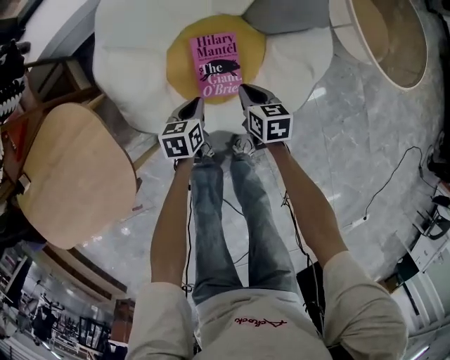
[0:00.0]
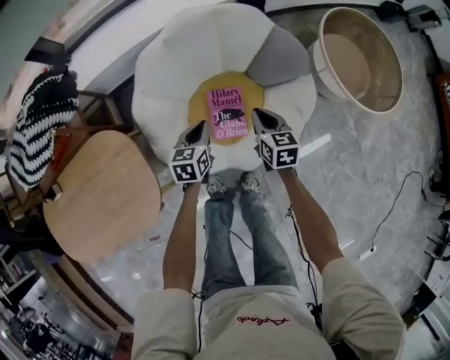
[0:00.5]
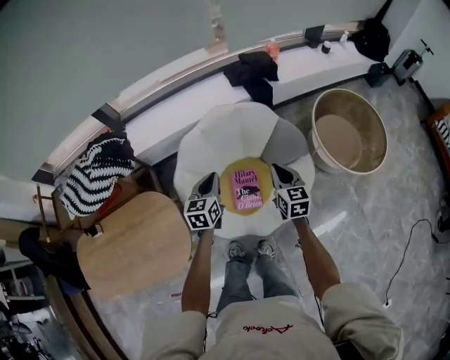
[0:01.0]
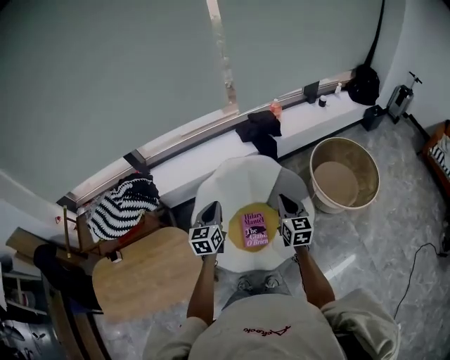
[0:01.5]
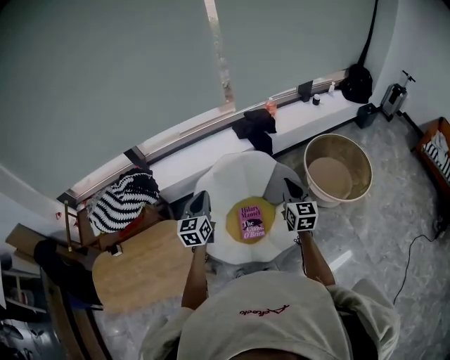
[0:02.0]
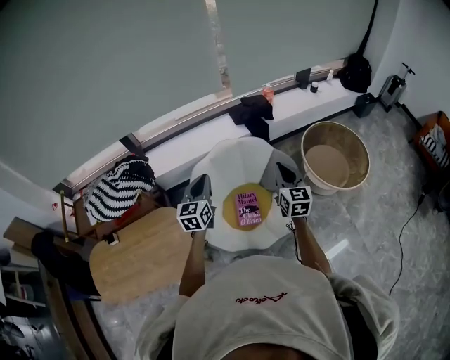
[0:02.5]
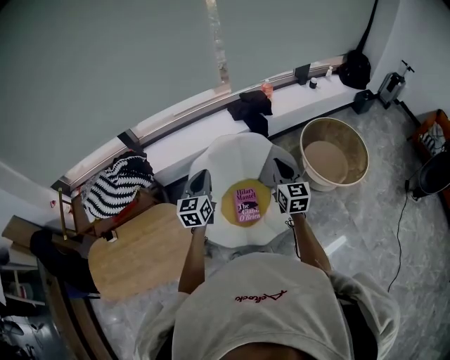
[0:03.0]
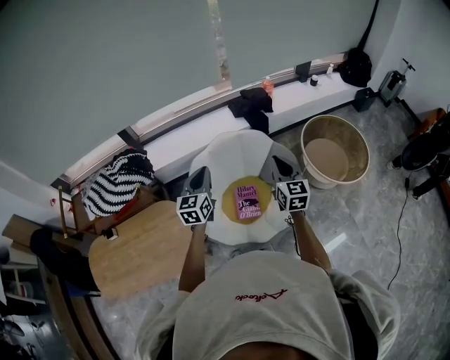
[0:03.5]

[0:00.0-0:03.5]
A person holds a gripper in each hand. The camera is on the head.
0:00.0 to 0:02.0: The two grippers go approximately 60 cm upward. The left gripper tilts its fingers roughly 40 degrees upward; the right gripper points its fingers some 40 degrees further upward.
0:02.0 to 0:03.5: The grippers make only small movements.

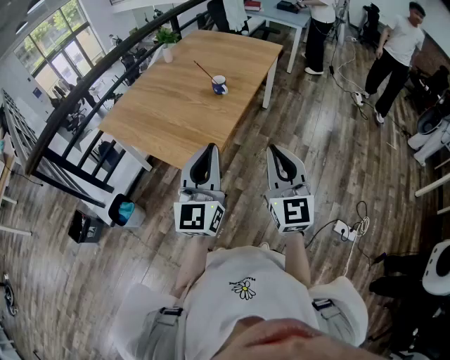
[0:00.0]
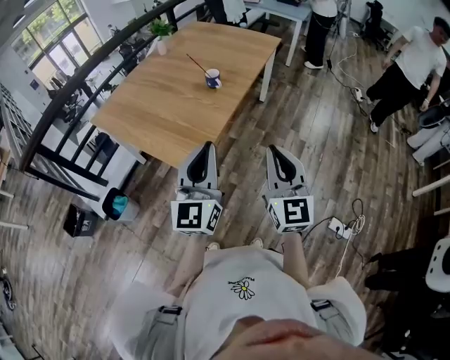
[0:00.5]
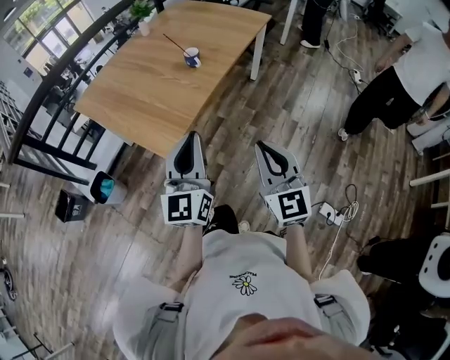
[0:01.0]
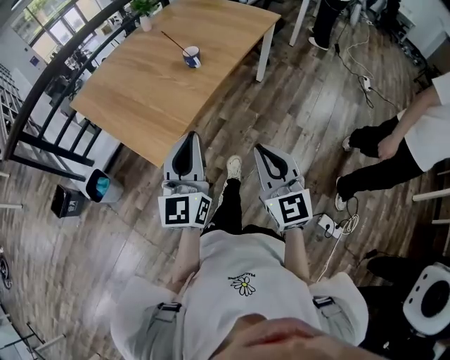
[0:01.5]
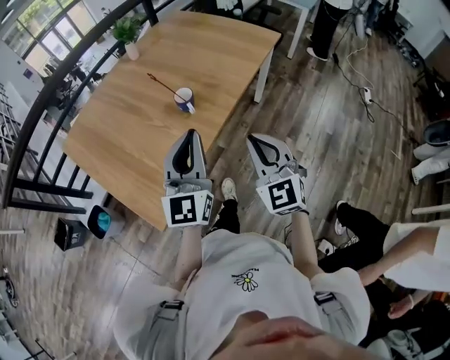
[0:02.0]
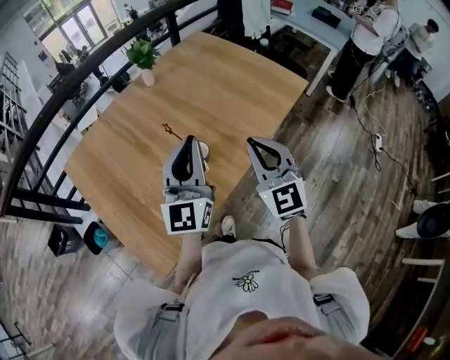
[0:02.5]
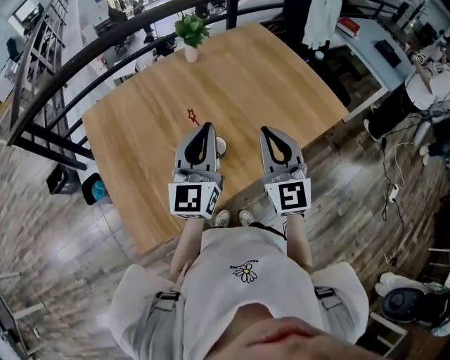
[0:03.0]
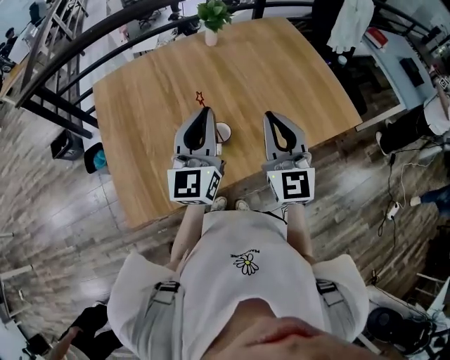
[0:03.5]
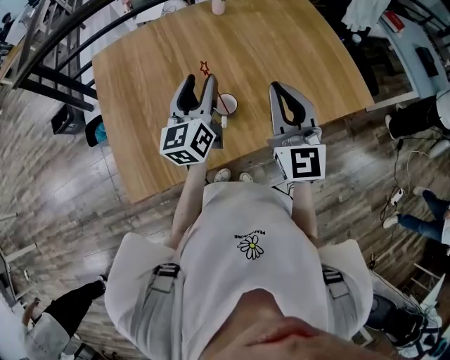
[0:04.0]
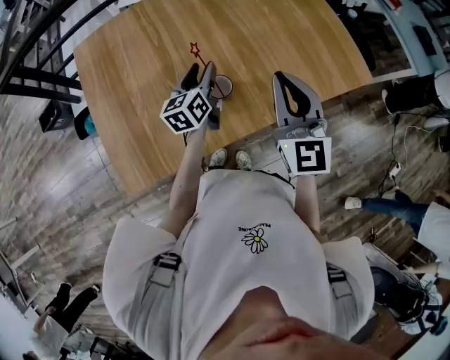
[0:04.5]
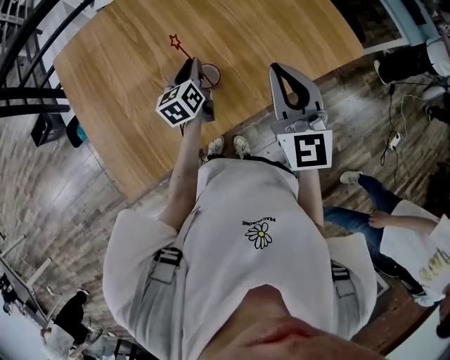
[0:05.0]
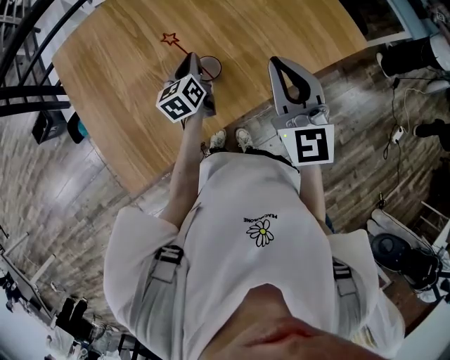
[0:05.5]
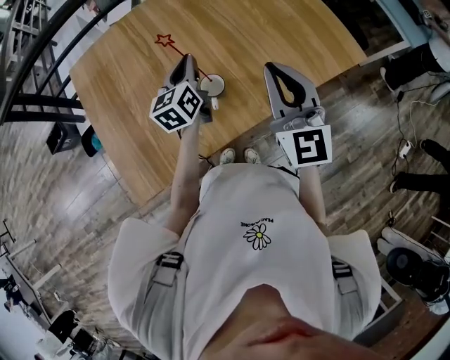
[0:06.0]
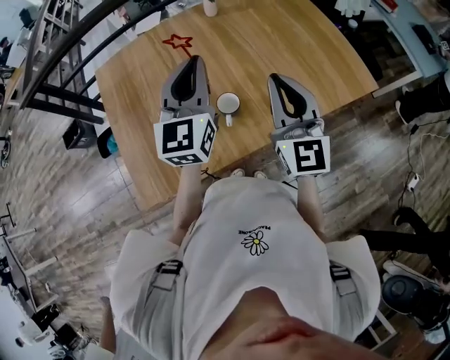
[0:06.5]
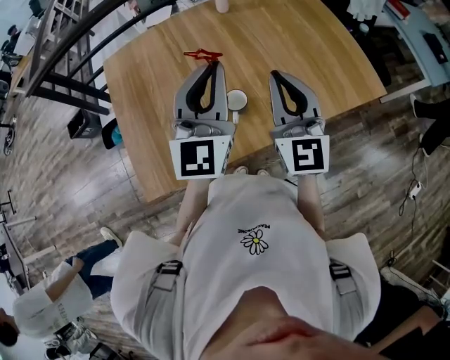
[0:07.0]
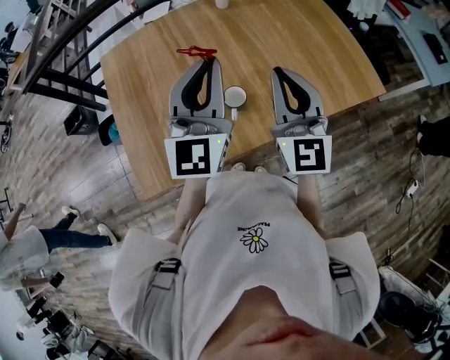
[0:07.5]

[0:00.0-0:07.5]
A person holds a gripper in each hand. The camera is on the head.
0:00.0 to 0:02.0: The grippers both shift forward and to the right by some 30 cm. The right gripper changes its angle by approximately 30 degrees.
0:02.0 to 0:04.0: The left gripper ends up approximately 25 cm from where it was, rotates about 40 degrees, and opens; the right gripper ends up approximately 30 cm from where it was, and swivels some 30 degrees.
0:04.0 to 0:05.5: The left gripper shifts some 20 cm downward, swivels some 20 degrees, and closes.
0:05.5 to 0:07.5: The left gripper travels upward by some 30 cm, and tips its fingers upward by approximately 30 degrees; the right gripper goes about 5 cm upward.

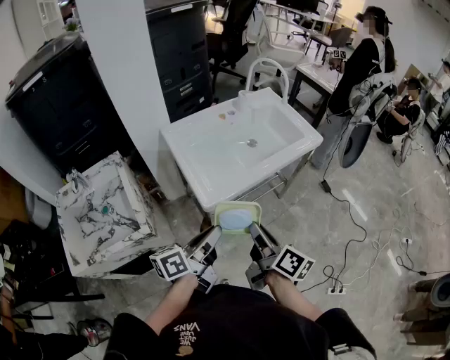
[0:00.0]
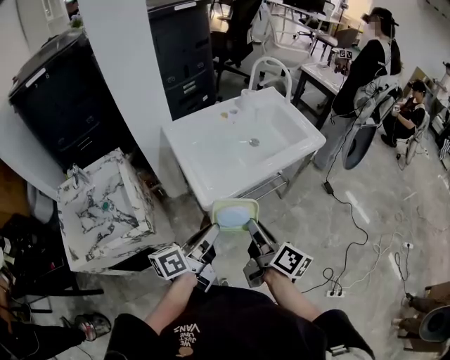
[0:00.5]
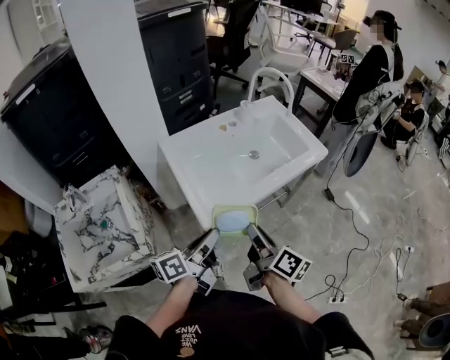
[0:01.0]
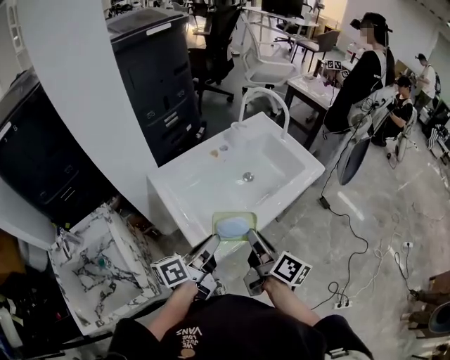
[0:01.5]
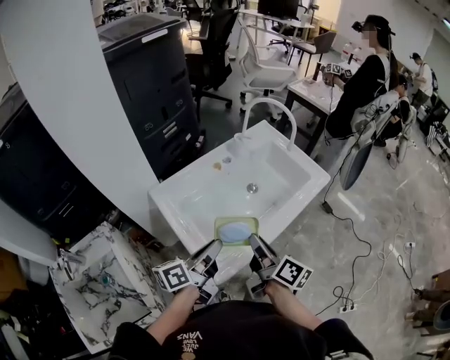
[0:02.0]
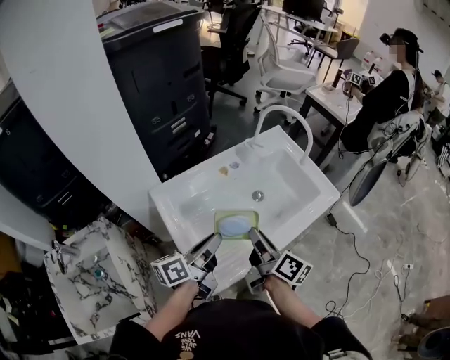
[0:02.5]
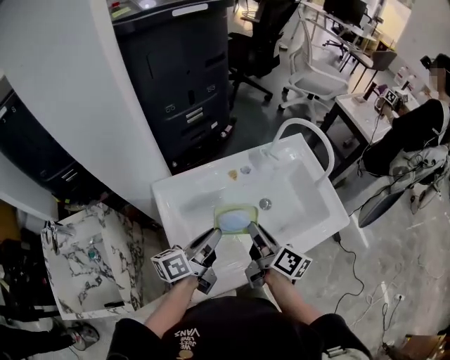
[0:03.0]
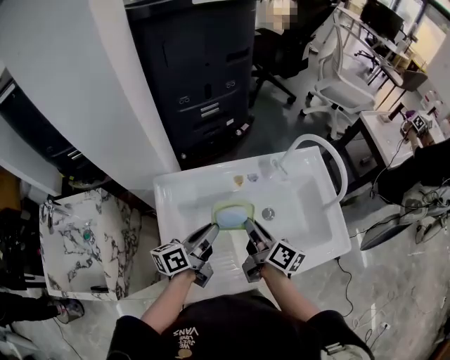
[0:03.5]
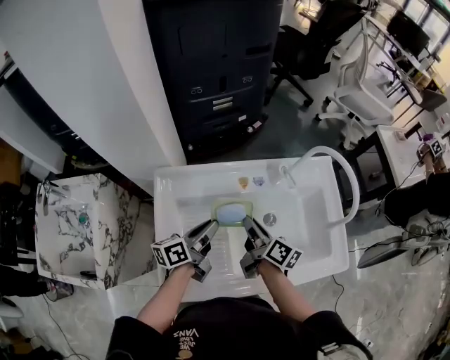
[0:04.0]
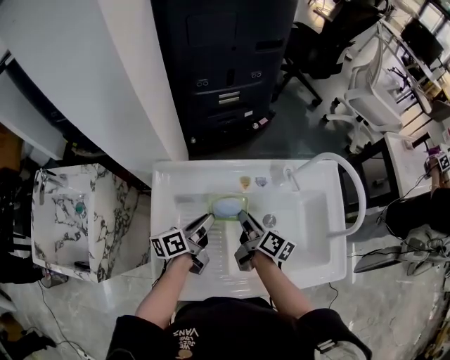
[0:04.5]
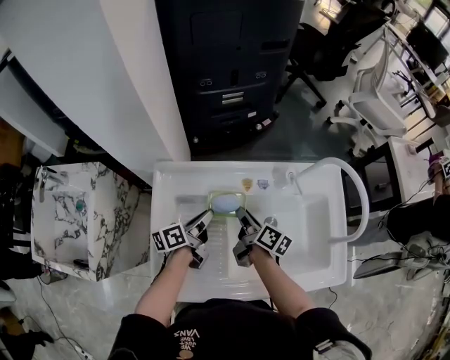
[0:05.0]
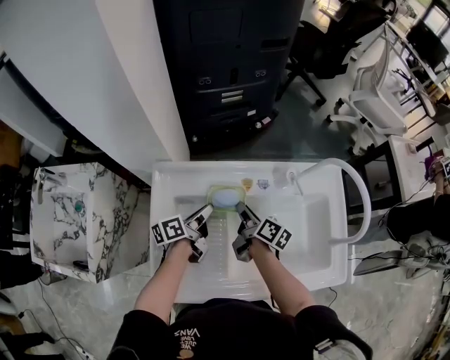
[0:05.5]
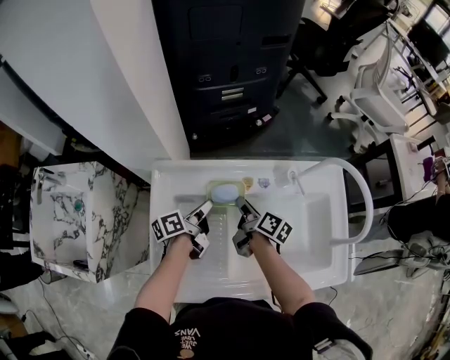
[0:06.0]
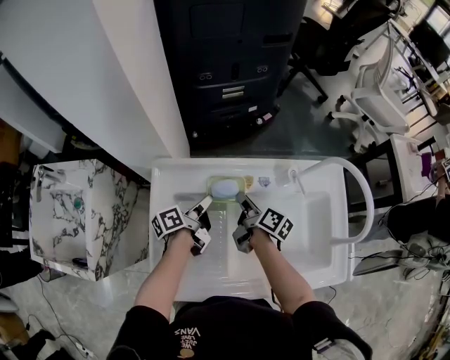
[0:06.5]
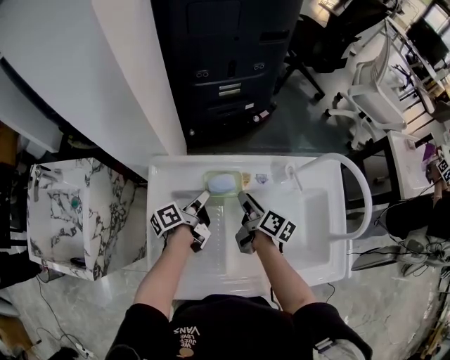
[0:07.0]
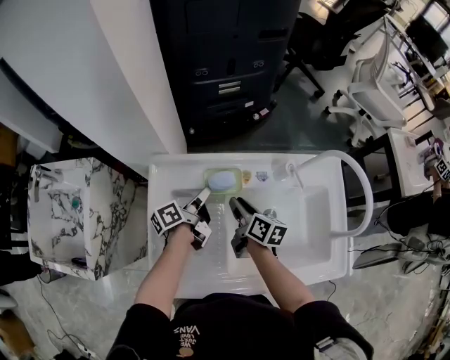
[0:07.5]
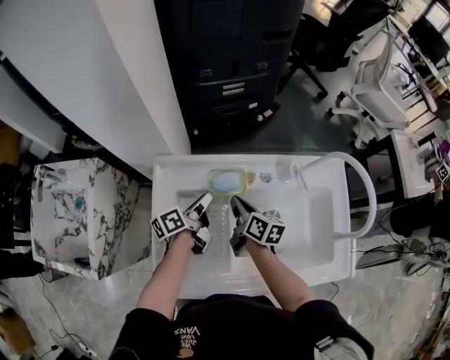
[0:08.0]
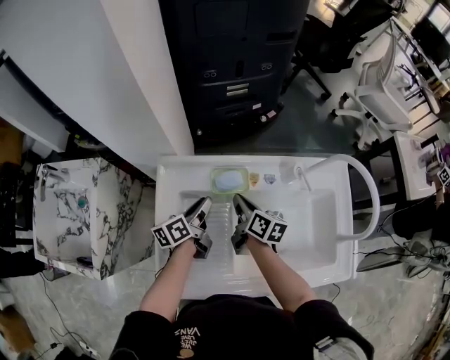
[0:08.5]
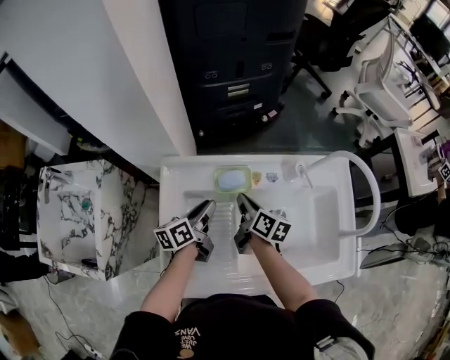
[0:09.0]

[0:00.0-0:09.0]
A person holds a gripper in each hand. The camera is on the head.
0:00.0 to 0:02.0: The two grippers go approximately 20 cm forward.
0:02.0 to 0:04.5: The right gripper shifts by some 30 cm, and turns by roughly 40 degrees. Meanwhile the left gripper shifts by roughly 25 cm, and turns by some 40 degrees.
0:04.5 to 0:07.0: The two grippers go roughly 5 cm forward.
0:07.0 to 0:09.0: The right gripper closes; the left gripper swivels approximately 20 degrees.

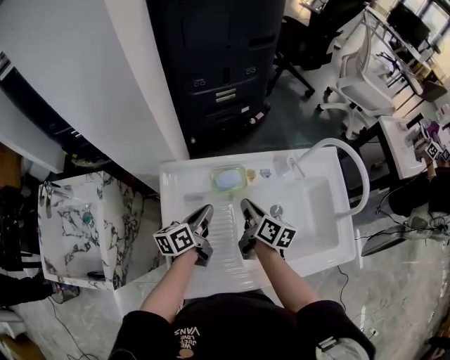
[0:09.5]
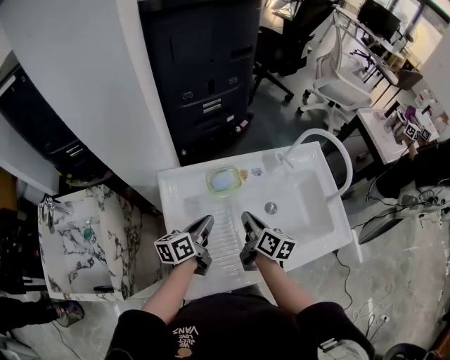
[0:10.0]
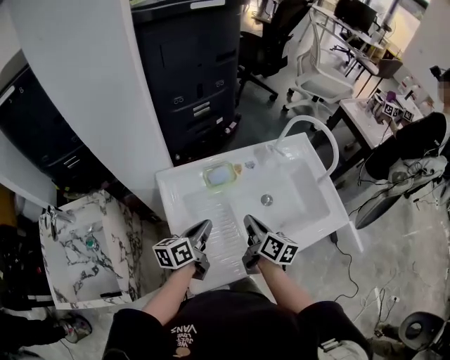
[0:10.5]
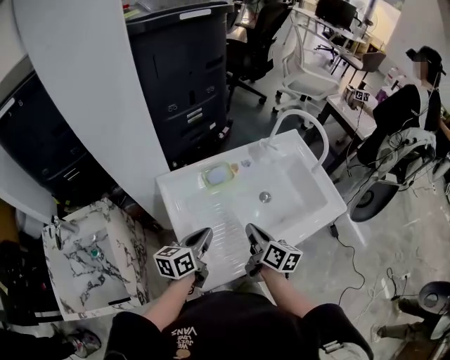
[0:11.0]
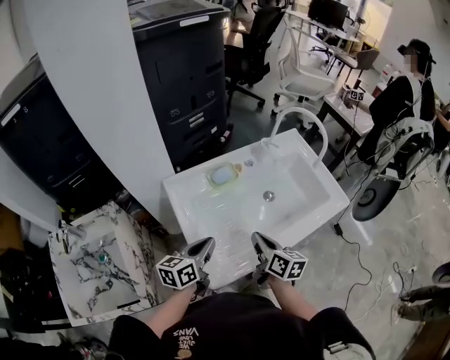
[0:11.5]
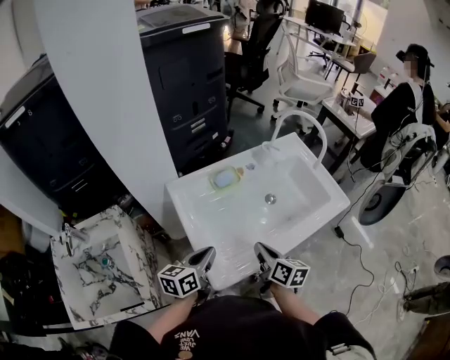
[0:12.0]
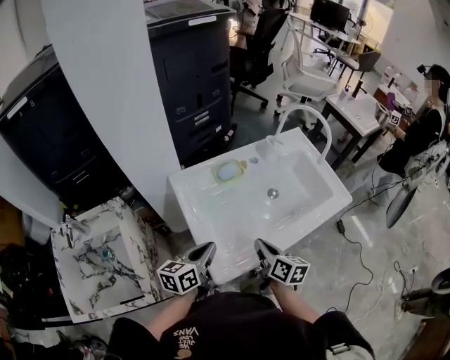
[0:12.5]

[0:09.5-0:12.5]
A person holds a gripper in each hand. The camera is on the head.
0:09.5 to 0:11.0: The left gripper heads backward and upward, covering about 15 cm, and changes its angle by roughly 30 degrees; the right gripper goes roughly 15 cm backward.
0:11.0 to 0:12.5: Both grippers move backward, about 10 cm.

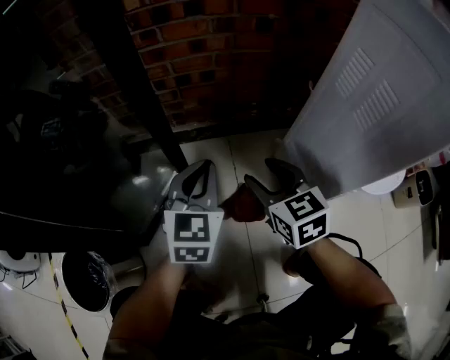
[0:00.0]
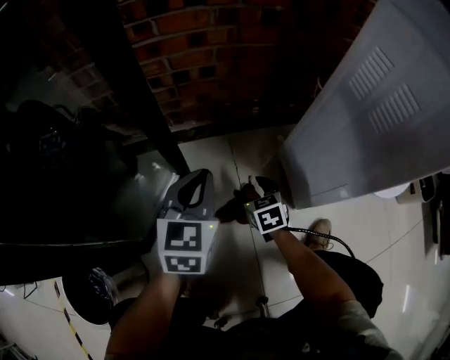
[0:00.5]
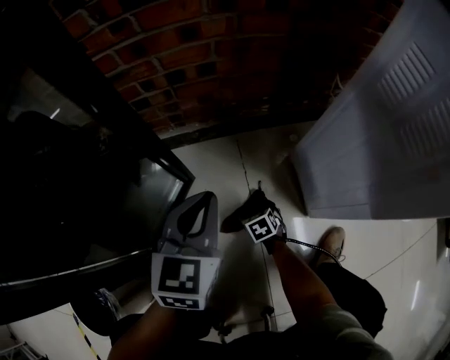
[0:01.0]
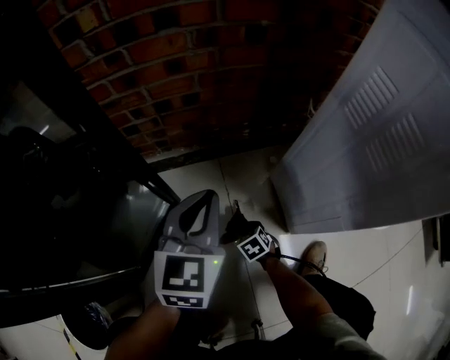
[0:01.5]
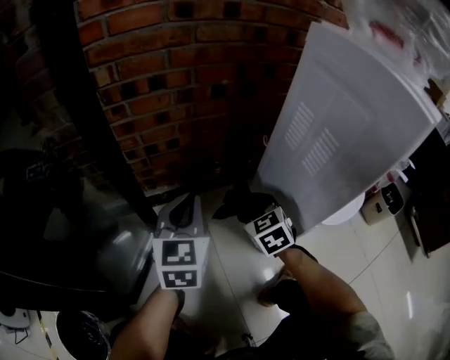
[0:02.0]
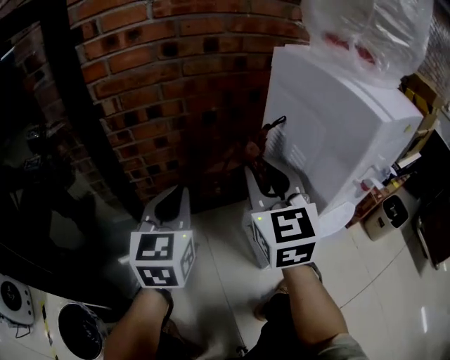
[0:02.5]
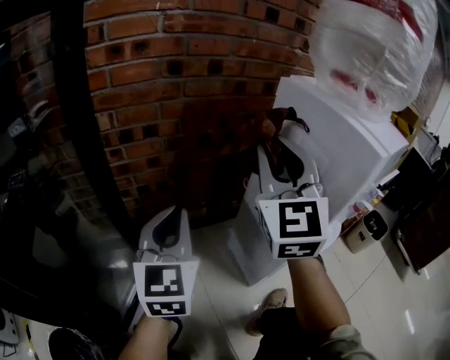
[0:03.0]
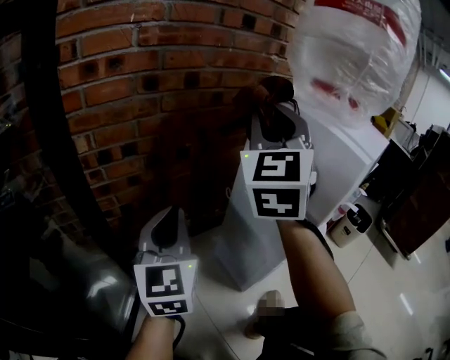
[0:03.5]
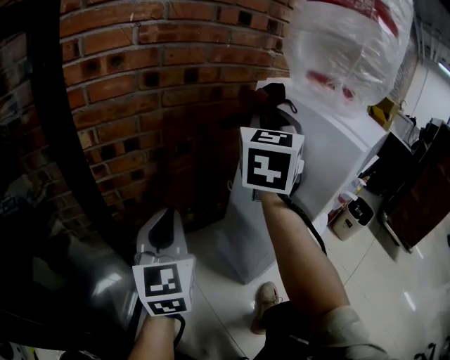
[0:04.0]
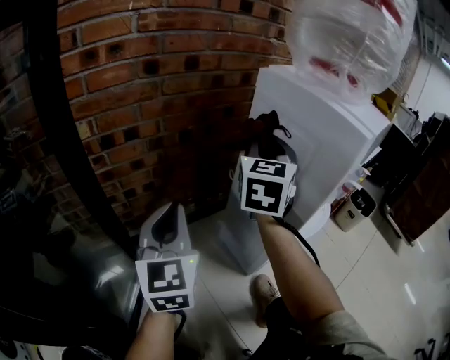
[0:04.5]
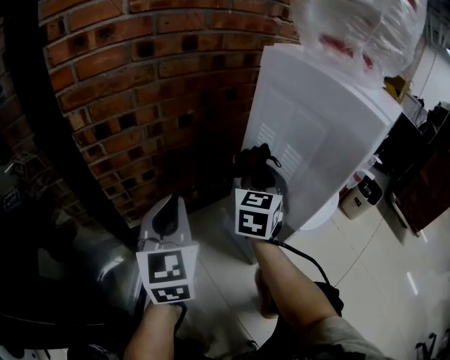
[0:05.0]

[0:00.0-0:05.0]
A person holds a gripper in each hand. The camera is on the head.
0:00.0 to 0:02.5: The two grippers go some 20 cm upward. The right gripper swivels approximately 40 degrees, and closes.
0:02.5 to 0:05.0: The right gripper shifts some 15 cm downward, forward and to the right, and turns by approximately 40 degrees.
